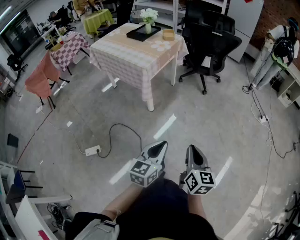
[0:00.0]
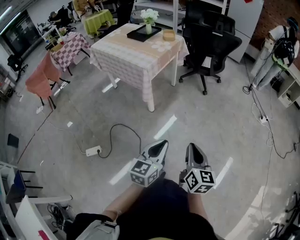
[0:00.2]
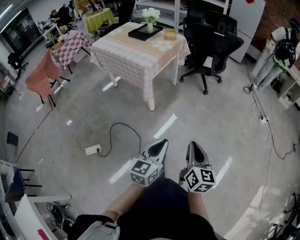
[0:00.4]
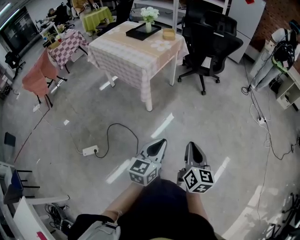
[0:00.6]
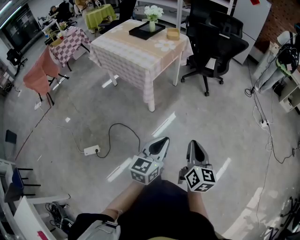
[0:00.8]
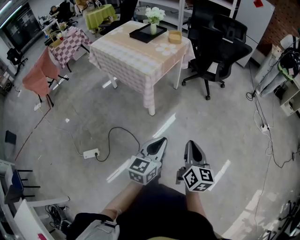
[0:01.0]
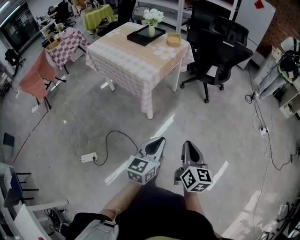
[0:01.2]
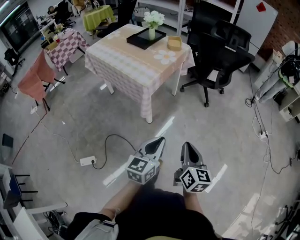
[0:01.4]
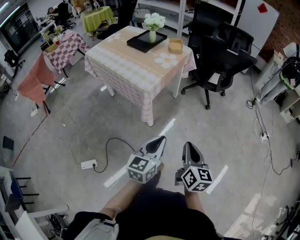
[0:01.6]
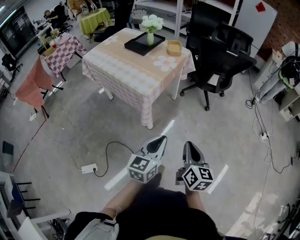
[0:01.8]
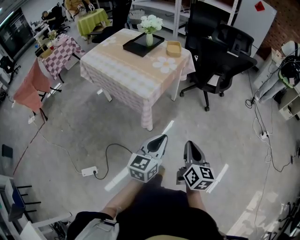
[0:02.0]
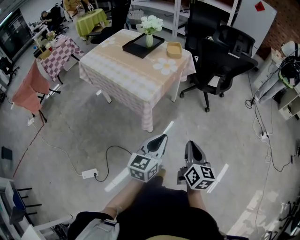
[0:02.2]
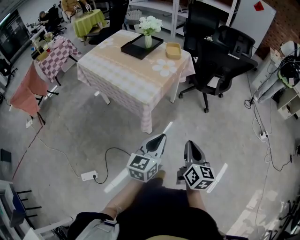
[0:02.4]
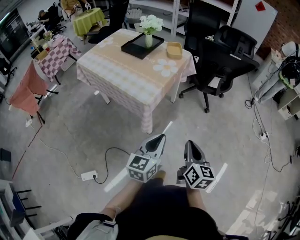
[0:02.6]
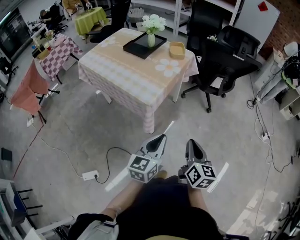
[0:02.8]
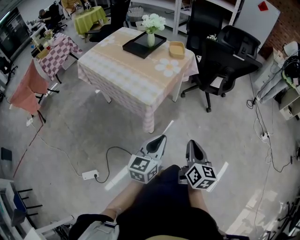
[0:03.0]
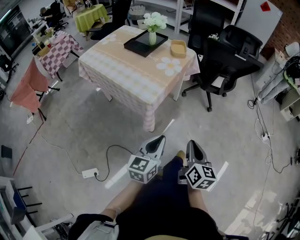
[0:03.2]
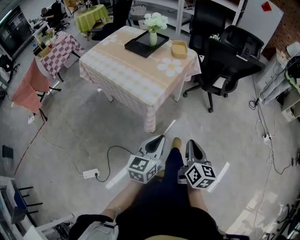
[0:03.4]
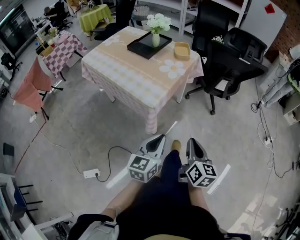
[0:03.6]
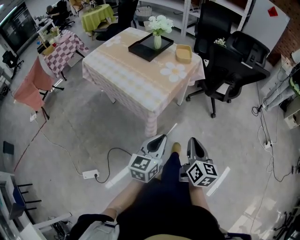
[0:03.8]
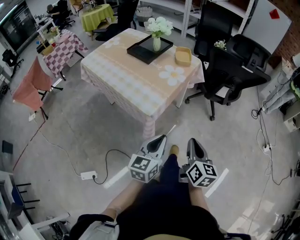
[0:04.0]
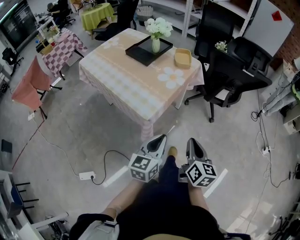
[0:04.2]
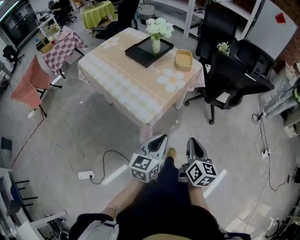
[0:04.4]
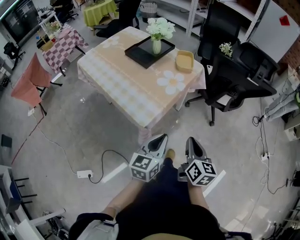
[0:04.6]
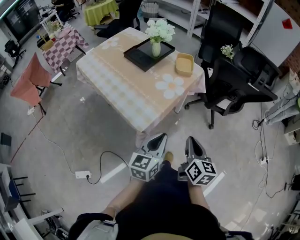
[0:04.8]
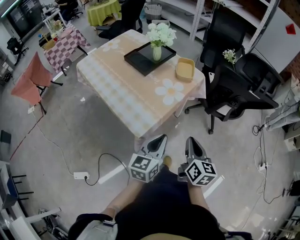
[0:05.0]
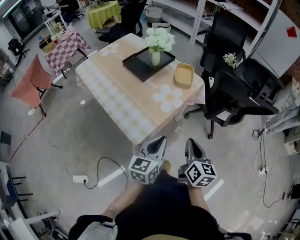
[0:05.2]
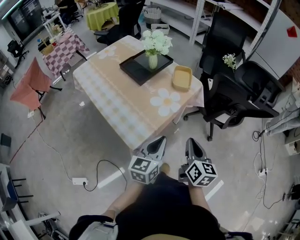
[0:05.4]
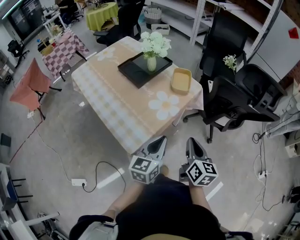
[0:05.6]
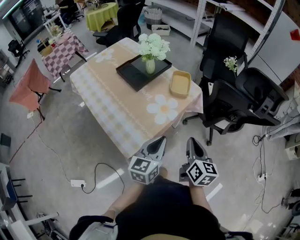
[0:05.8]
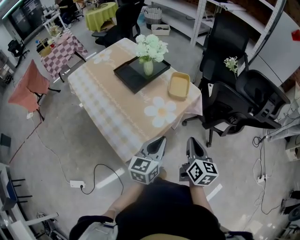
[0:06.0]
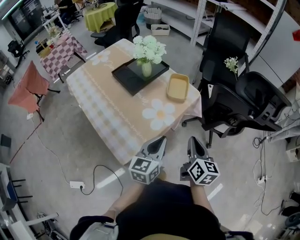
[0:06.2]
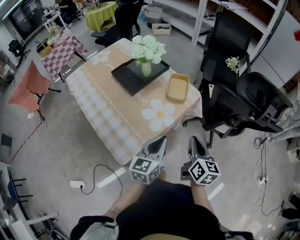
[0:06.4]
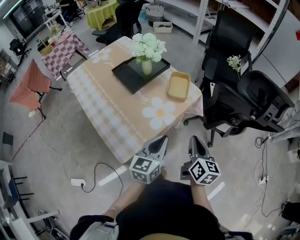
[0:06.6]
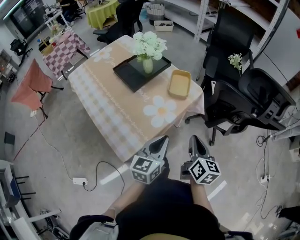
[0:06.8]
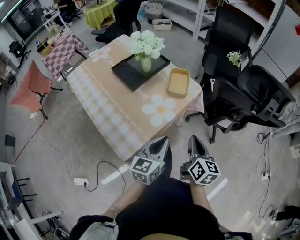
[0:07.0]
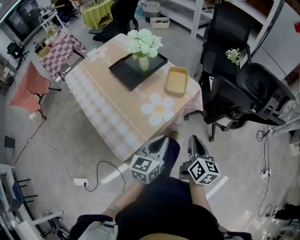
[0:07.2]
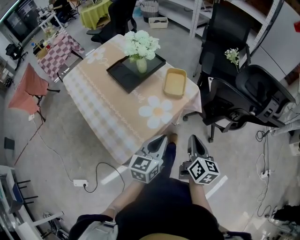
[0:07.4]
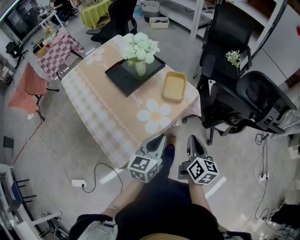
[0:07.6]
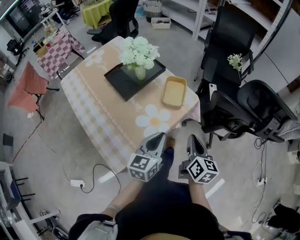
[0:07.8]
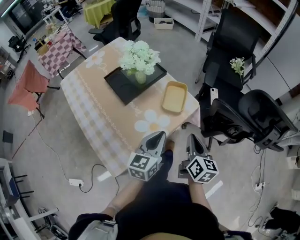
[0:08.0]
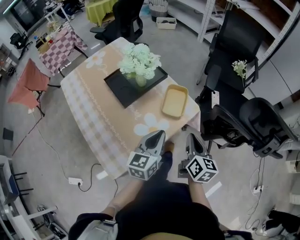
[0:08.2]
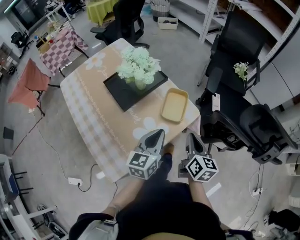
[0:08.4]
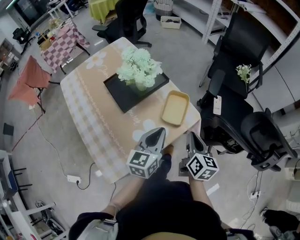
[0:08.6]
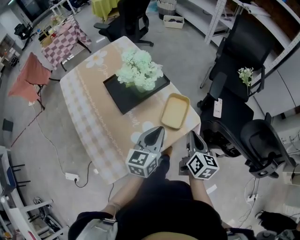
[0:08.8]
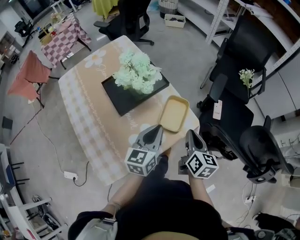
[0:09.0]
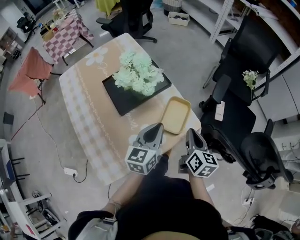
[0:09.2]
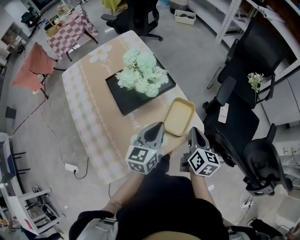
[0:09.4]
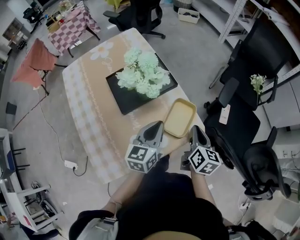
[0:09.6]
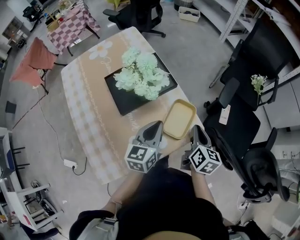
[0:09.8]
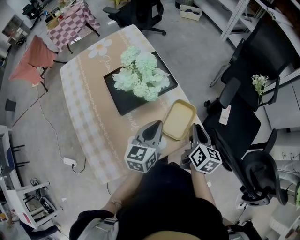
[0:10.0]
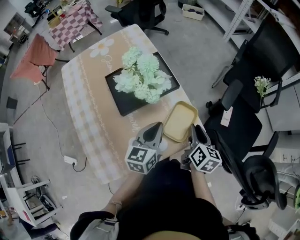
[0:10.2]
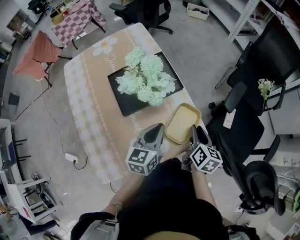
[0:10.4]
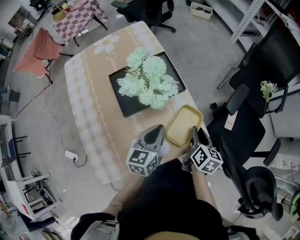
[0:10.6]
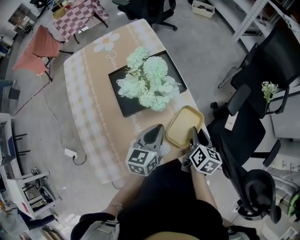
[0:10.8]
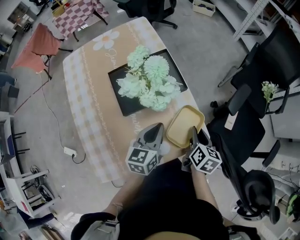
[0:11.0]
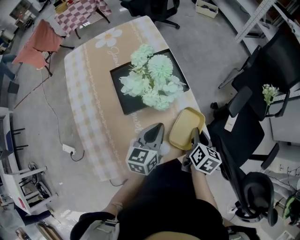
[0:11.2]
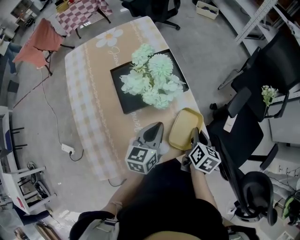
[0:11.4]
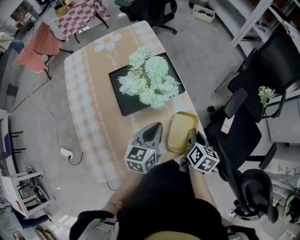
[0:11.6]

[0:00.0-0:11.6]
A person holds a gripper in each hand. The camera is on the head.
0.0 to 1.4 s: The two grippers go roughly 20 cm forward.
1.4 to 2.8 s: The grippers both shift forward and to the left by some 15 cm.
2.8 to 4.4 s: Both grippers move forward, roughly 15 cm.
4.4 to 5.8 s: The two grippers go some 20 cm forward.
5.8 to 7.2 s: The right gripper changes place by roughly 5 cm. The left gripper moves some 5 cm.
7.2 to 8.8 s: Both grippers travel together forward, some 20 cm.
8.8 to 10.2 s: Both grippers travel together forward, about 10 cm. The right gripper opens.
10.2 to 11.6 s: The grippers move only a little.

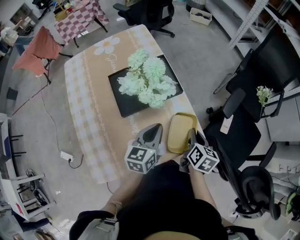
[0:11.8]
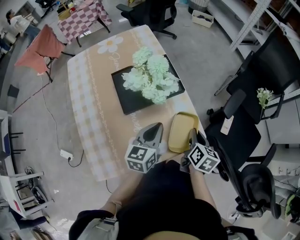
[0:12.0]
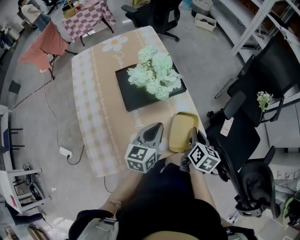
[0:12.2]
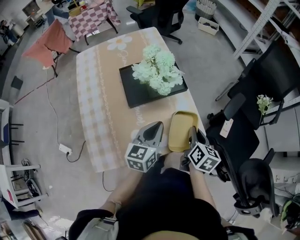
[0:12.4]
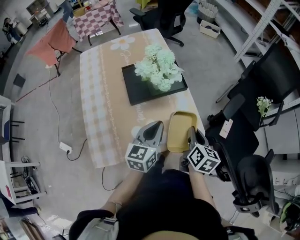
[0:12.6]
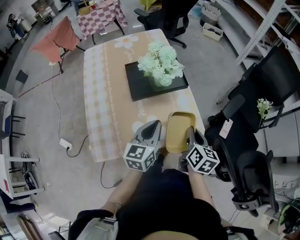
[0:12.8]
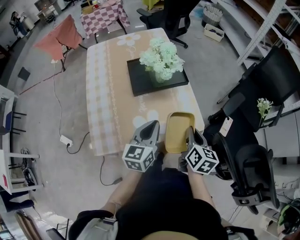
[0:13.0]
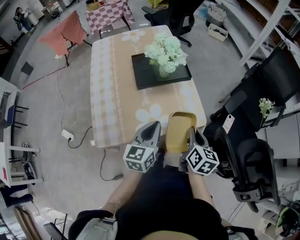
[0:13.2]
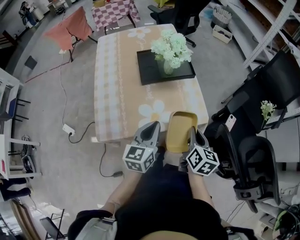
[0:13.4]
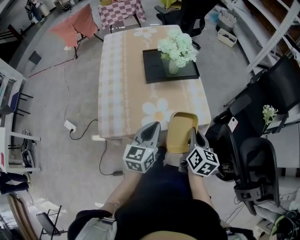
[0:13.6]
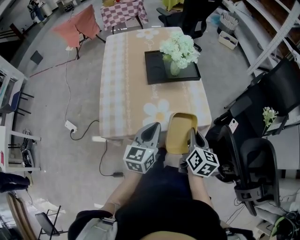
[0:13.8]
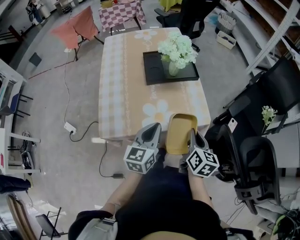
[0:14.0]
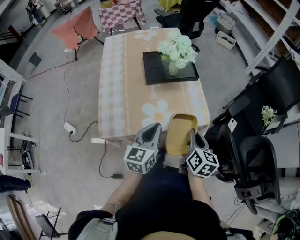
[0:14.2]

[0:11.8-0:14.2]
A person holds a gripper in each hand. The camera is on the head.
11.8 to 13.0 s: The grippers both shift backward and upward by approximately 10 cm.
13.0 to 14.2 s: The two grippers go about 5 cm backward.

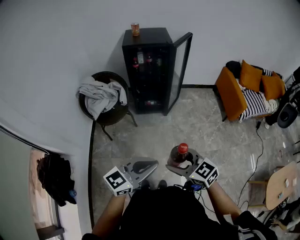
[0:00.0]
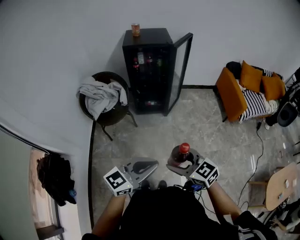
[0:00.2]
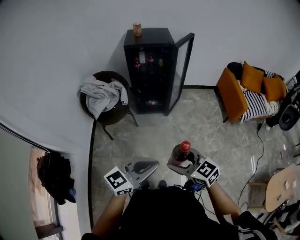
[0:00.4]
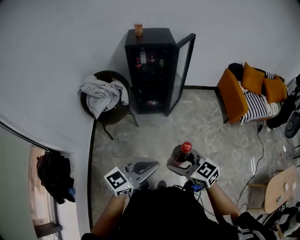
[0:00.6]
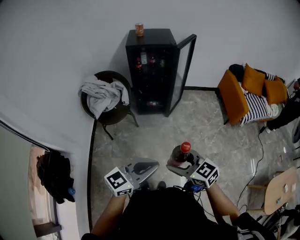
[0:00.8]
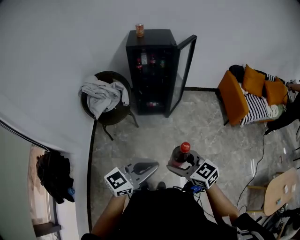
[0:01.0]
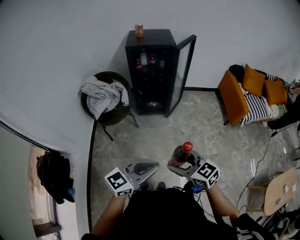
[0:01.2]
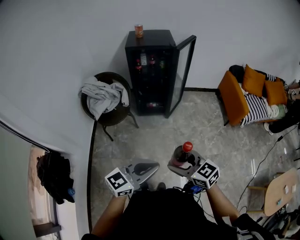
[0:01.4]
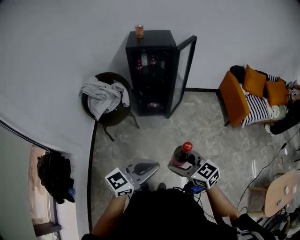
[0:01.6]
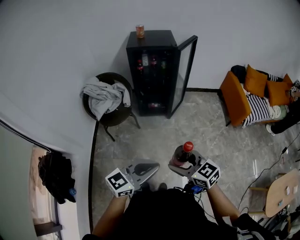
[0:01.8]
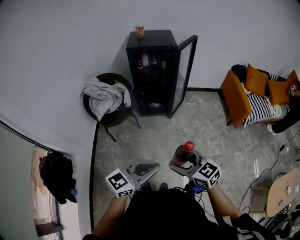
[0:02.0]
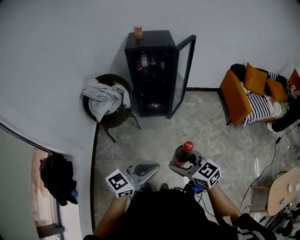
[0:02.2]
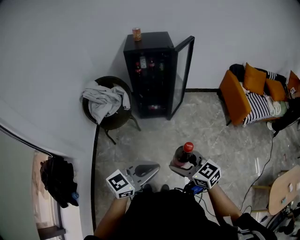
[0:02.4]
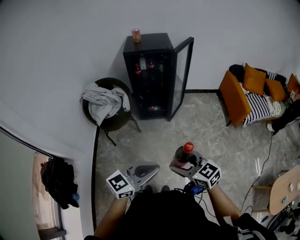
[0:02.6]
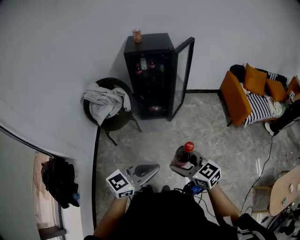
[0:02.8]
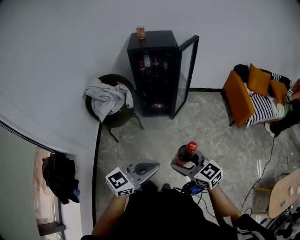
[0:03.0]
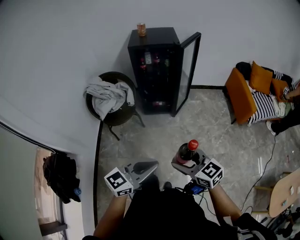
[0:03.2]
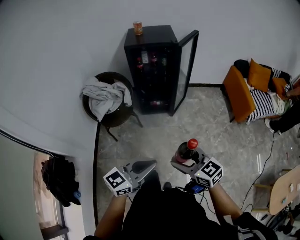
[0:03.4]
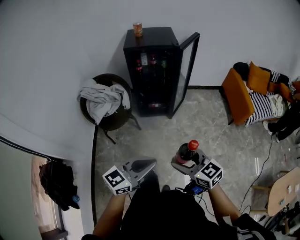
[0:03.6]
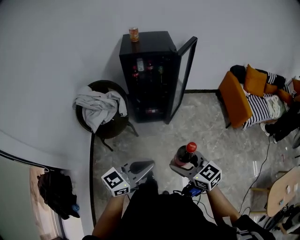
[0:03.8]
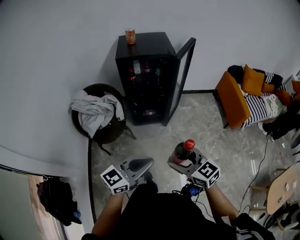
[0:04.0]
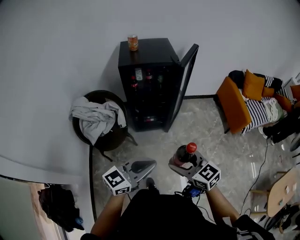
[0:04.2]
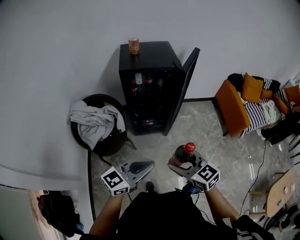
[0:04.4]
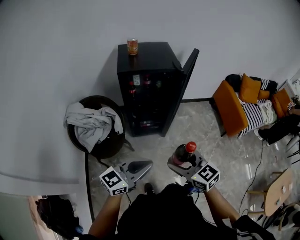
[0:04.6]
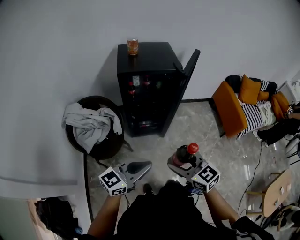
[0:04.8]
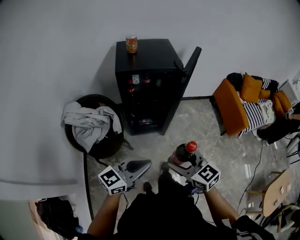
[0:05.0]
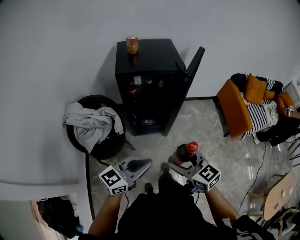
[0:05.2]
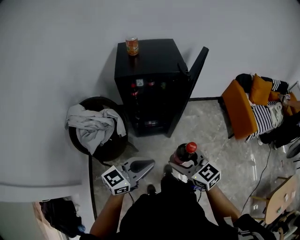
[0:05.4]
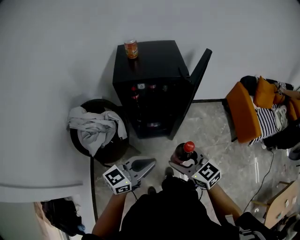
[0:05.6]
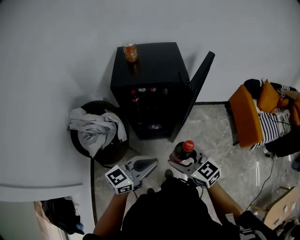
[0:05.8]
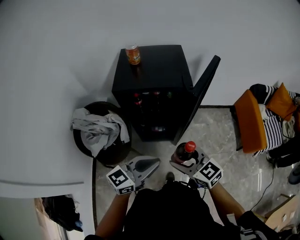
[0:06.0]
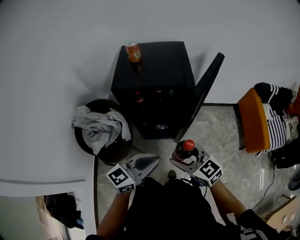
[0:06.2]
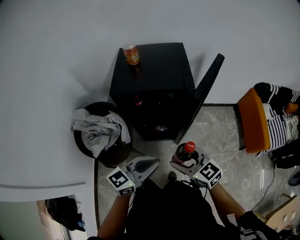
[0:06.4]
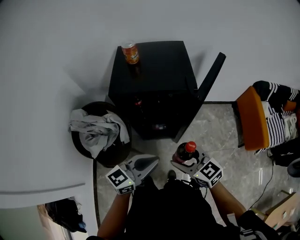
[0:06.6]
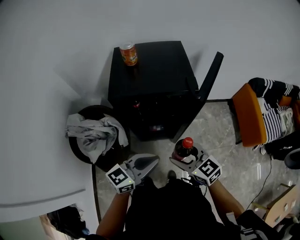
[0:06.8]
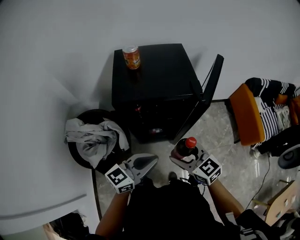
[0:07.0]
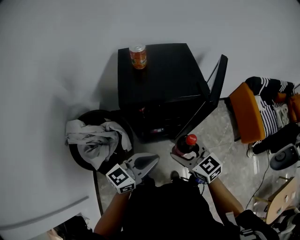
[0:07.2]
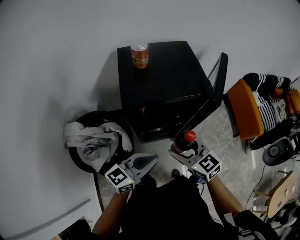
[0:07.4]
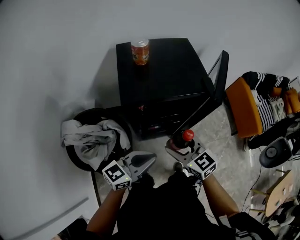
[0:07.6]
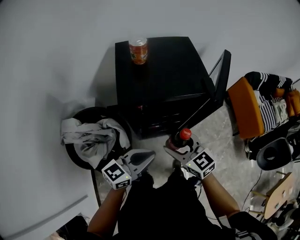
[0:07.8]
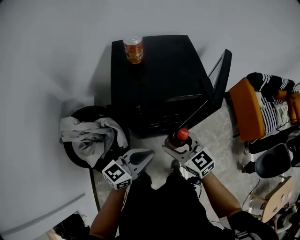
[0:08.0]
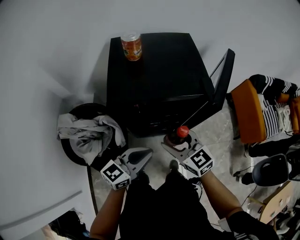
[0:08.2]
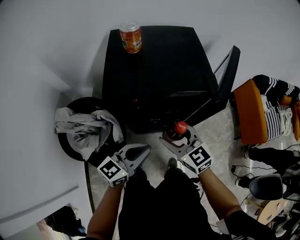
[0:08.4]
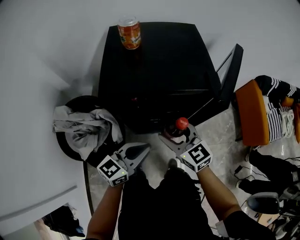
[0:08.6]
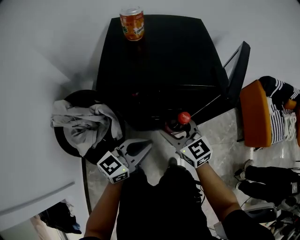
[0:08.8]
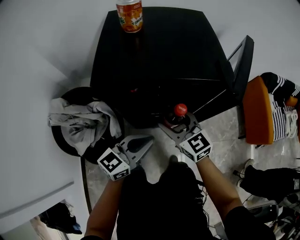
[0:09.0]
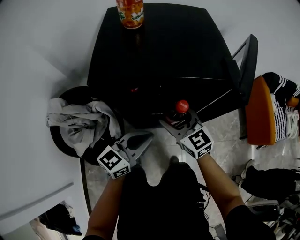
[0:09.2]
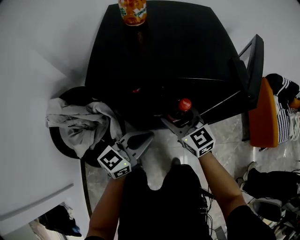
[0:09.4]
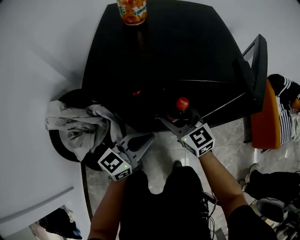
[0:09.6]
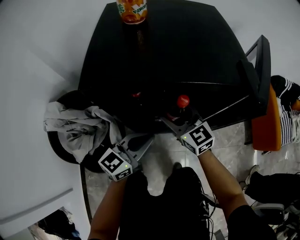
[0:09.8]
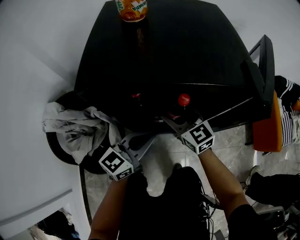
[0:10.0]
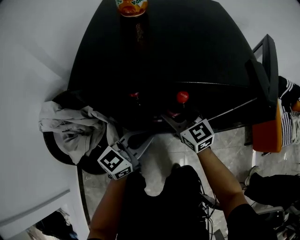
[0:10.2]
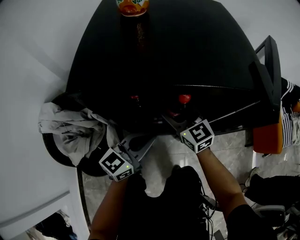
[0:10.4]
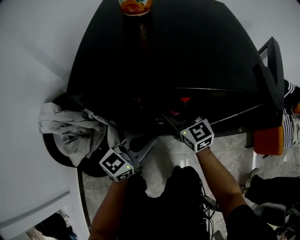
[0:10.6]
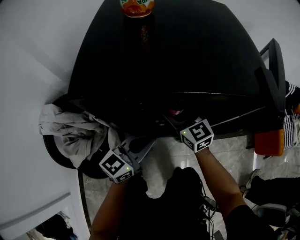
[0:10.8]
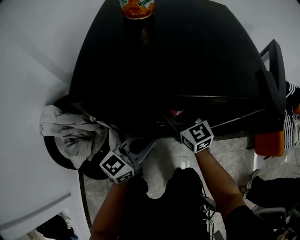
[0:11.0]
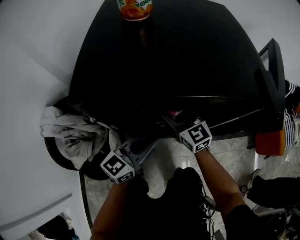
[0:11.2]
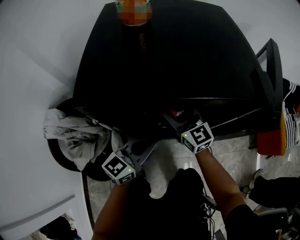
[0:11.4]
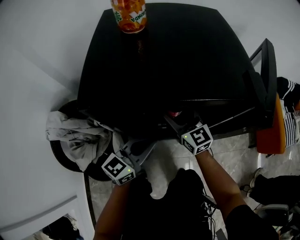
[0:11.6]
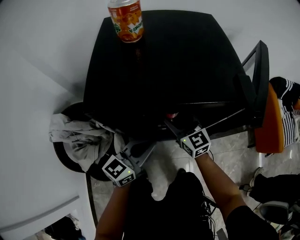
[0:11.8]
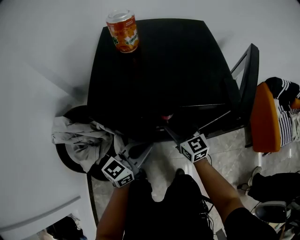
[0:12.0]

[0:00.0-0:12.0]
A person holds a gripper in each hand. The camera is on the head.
0.0 to 3.0 s: The grippers stay close to where they were, moving slightly.
3.0 to 4.4 s: The grippers both shift forward and to the left by some 25 cm.
4.4 to 6.0 s: Both grippers travel together forward, about 20 cm.
6.0 to 7.6 s: The grippers both shift to the left and forward by about 15 cm.
7.6 to 9.0 s: The left gripper shifts some 15 cm downward, forward and to the right, while the right gripper is displaced downward and forward by roughly 15 cm.
9.0 to 10.4 s: The right gripper is displaced forward and downward by roughly 15 cm, while the left gripper moves downward and forward, about 10 cm.
10.4 to 12.0 s: The left gripper shifts some 5 cm upward.
